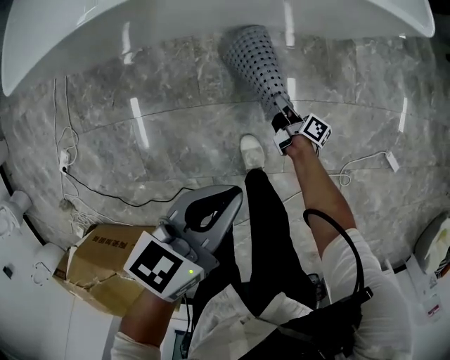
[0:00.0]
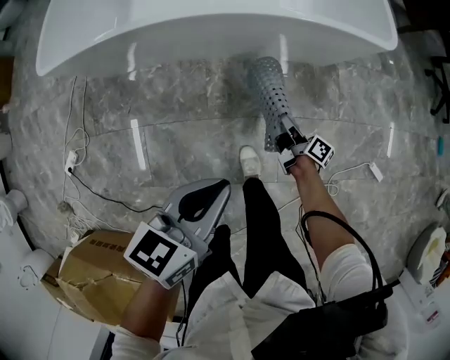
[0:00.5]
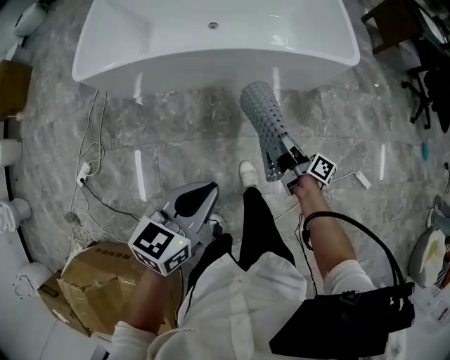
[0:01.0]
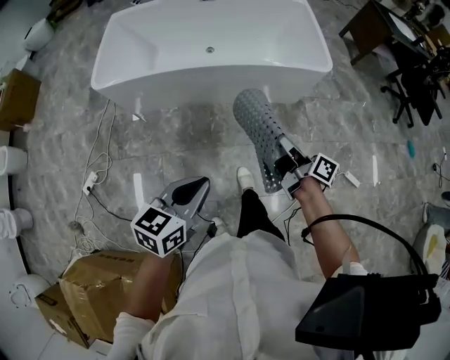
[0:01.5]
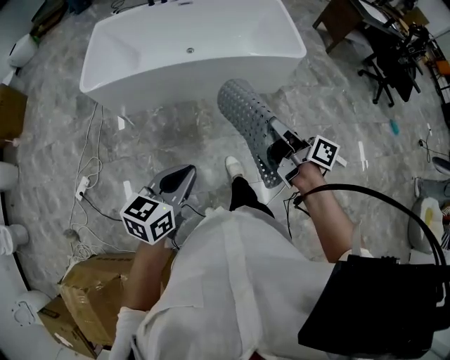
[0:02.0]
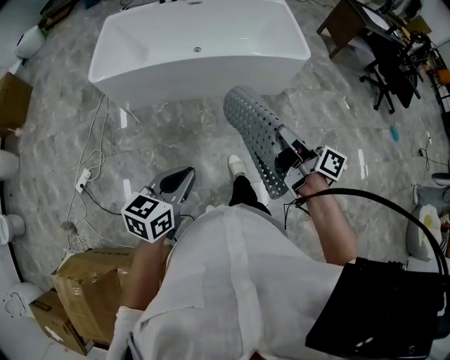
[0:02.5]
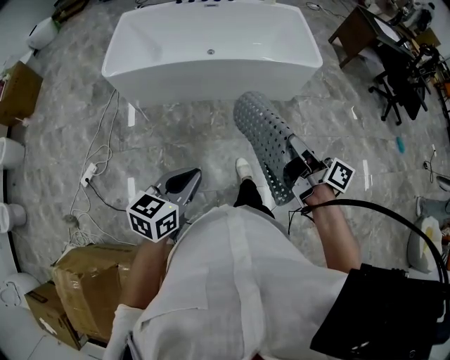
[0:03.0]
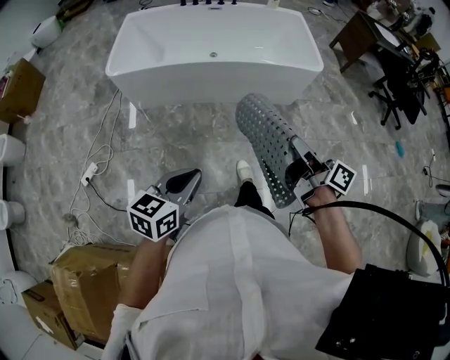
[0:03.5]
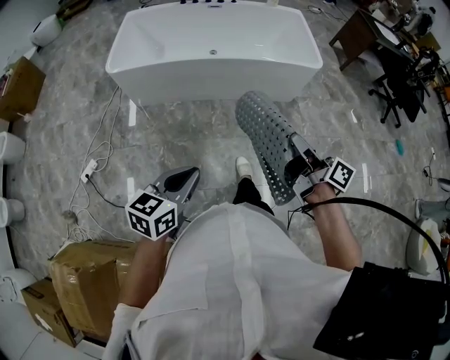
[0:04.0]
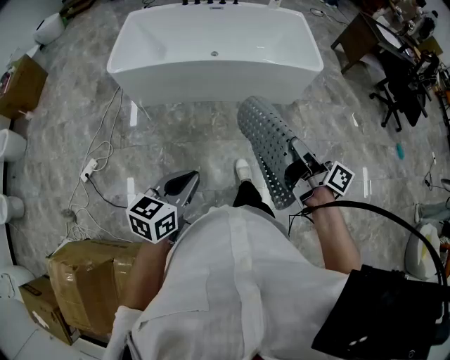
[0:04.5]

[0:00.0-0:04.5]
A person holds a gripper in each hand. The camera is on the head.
0.0 to 2.0 s: The right gripper shifts some 70 cm upward and backward, and changes its angle by approximately 20 degrees, while the left gripper goes approximately 40 cm upward and backward, and rotates approximately 20 degrees.
2.0 to 4.5 s: Both grippers travel together backward, some 5 cm.

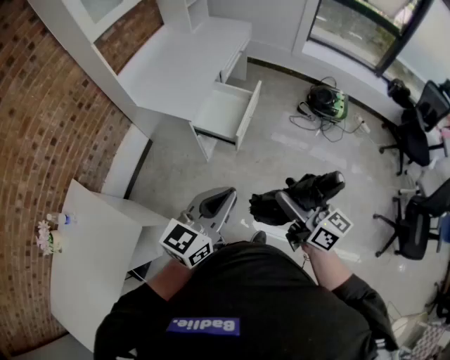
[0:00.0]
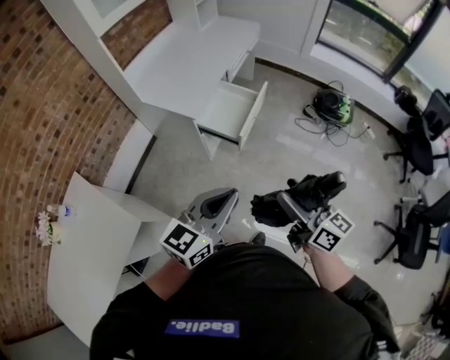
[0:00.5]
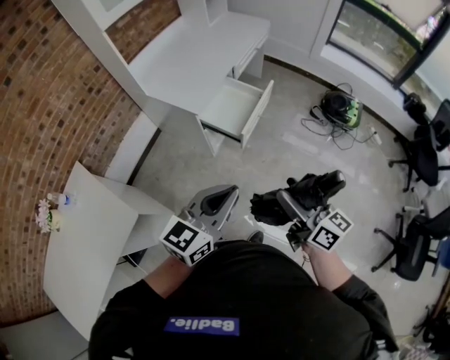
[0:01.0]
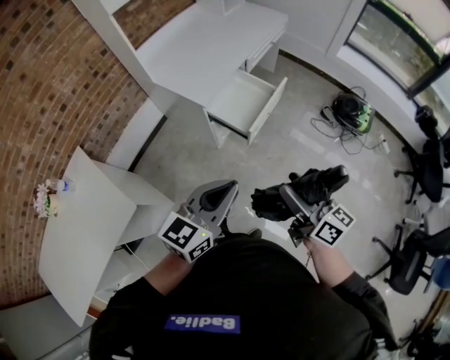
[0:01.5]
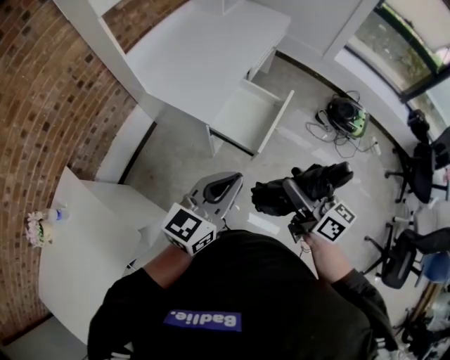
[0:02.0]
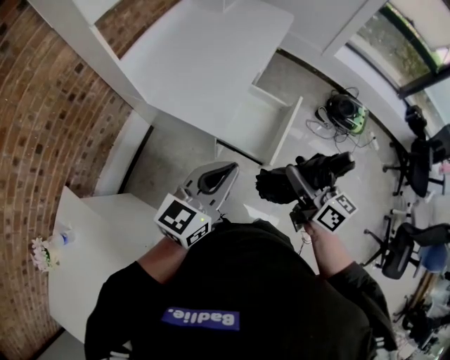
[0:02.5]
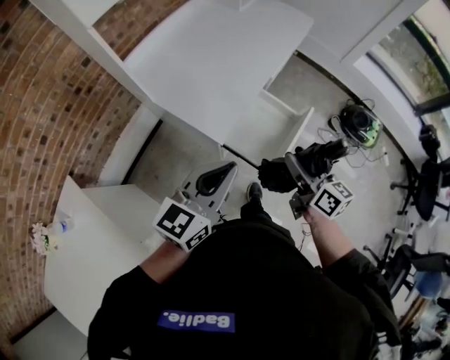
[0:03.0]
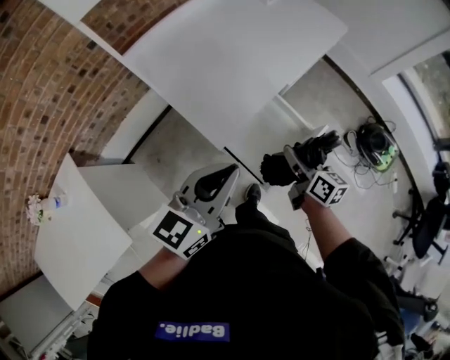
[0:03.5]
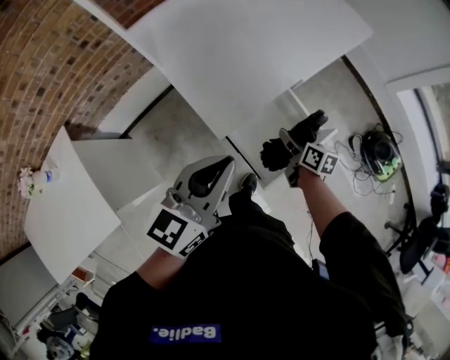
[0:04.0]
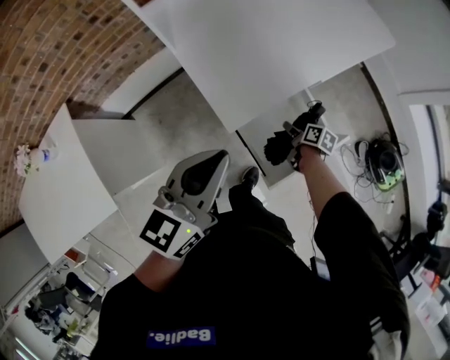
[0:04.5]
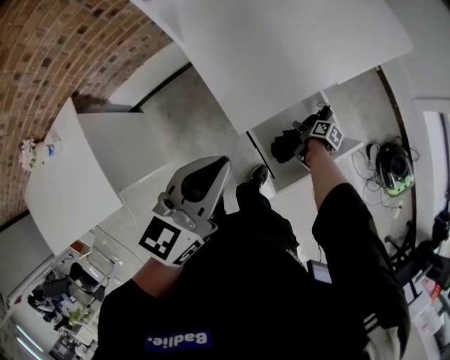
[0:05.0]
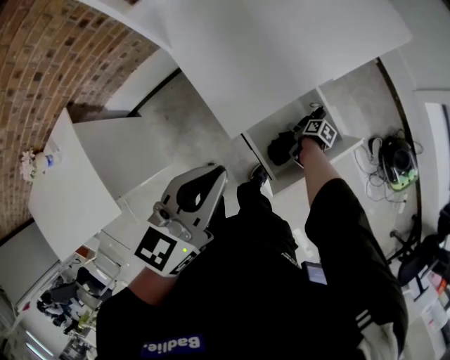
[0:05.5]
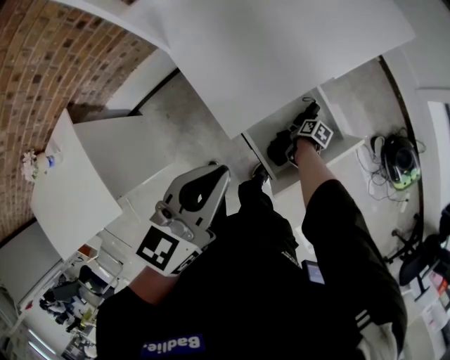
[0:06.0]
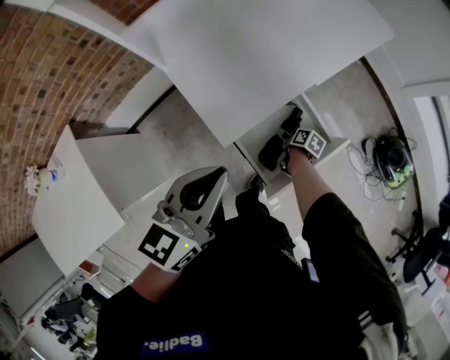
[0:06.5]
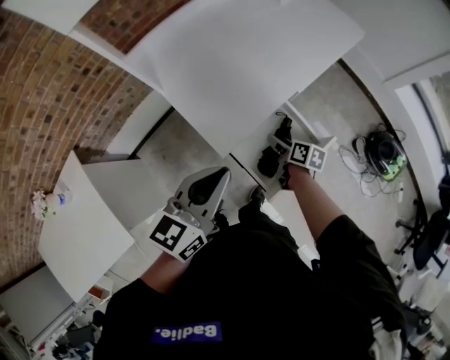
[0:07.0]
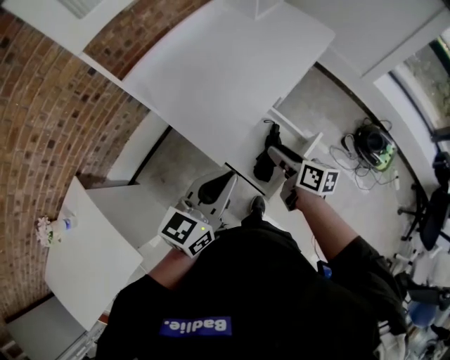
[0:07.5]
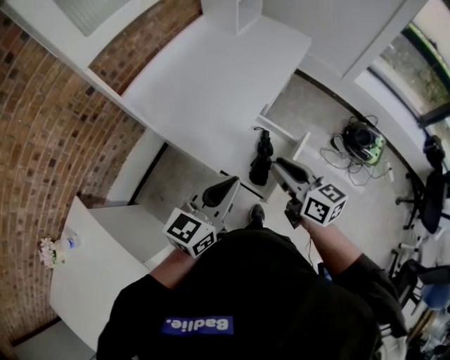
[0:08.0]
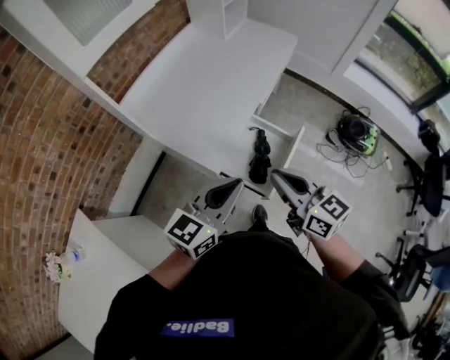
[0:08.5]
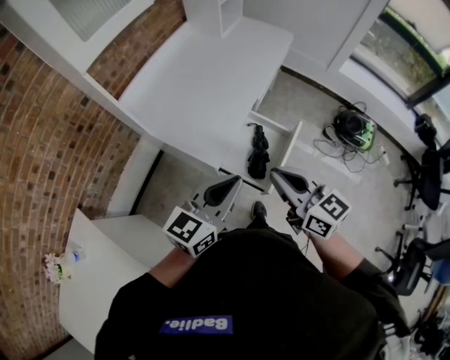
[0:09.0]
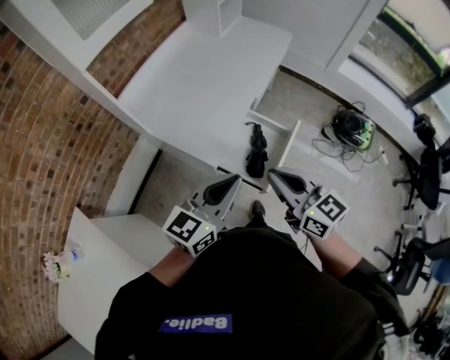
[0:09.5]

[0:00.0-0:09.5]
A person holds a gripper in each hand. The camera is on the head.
0.0 to 2.0 s: The left gripper heads forward and to the left, covering approximately 20 cm. The right gripper travels forward by approximately 20 cm.
2.0 to 4.0 s: The left gripper shifts by some 20 cm, and changes its angle by about 30 degrees; the right gripper shifts by some 40 cm, and points its fingers approximately 30 degrees further downward.
4.0 to 5.5 s: The left gripper shifts by roughly 5 cm; the right gripper is displaced downward by approximately 25 cm, and swivels some 40 degrees.
5.5 to 7.5 s: The right gripper moves upward, approximately 40 cm, and points its fingers some 40 degrees further upward. Meanwhile the left gripper travels upward by approximately 5 cm.
7.5 to 9.5 s: The right gripper shifts some 25 cm upward and backward, changes its angle by roughly 40 degrees, and closes its fingers. Meanwhile the left gripper shifts some 5 cm backward.

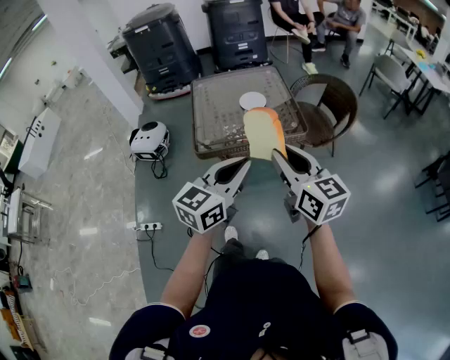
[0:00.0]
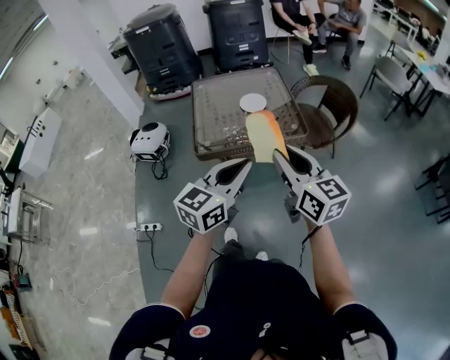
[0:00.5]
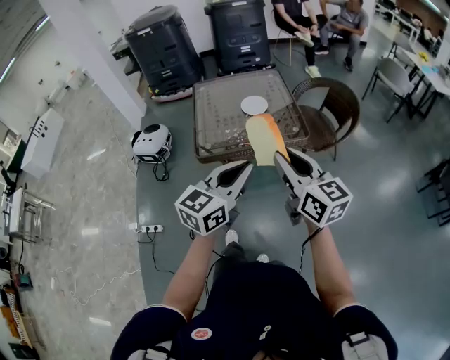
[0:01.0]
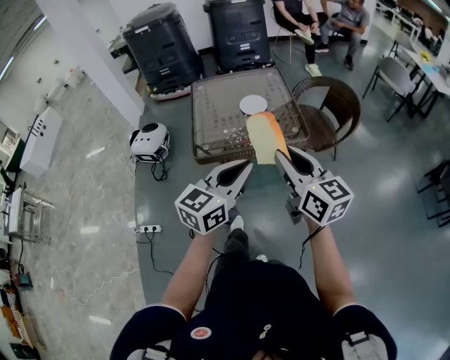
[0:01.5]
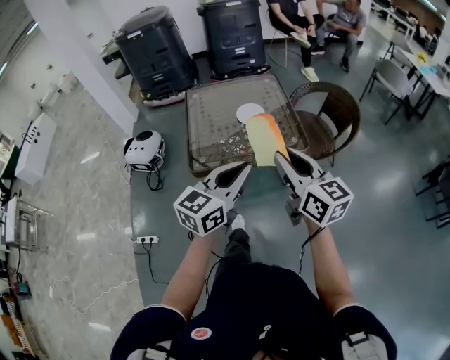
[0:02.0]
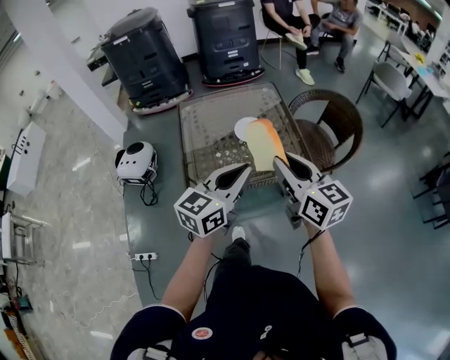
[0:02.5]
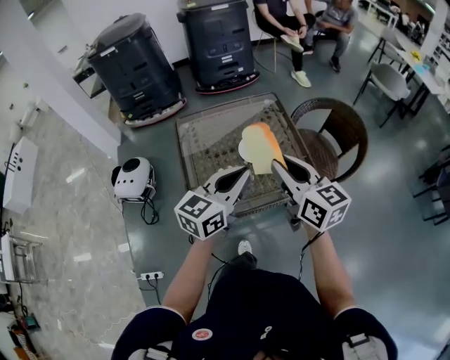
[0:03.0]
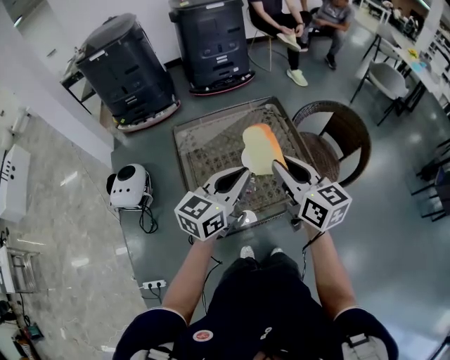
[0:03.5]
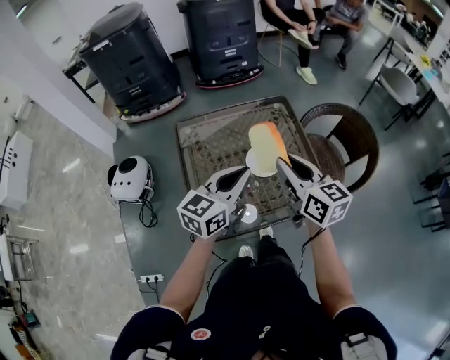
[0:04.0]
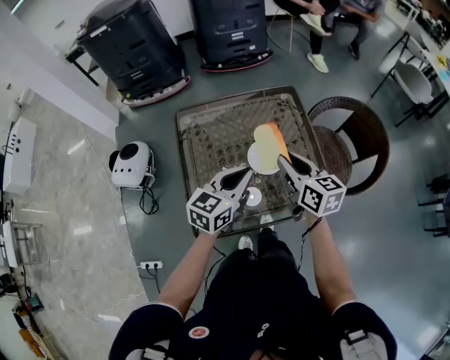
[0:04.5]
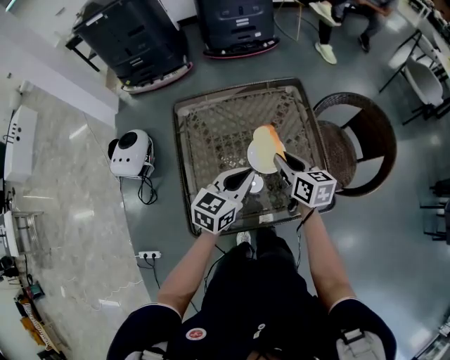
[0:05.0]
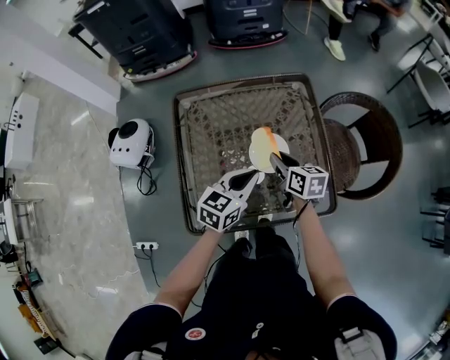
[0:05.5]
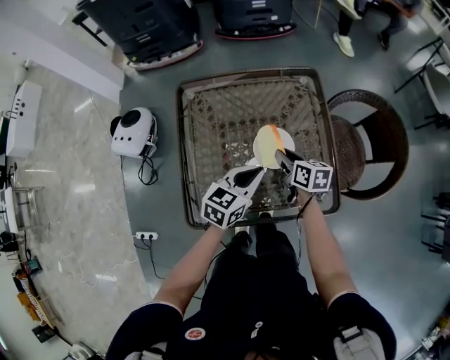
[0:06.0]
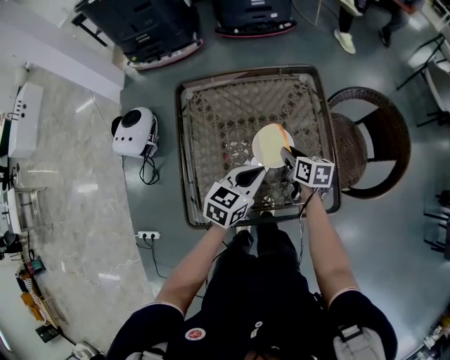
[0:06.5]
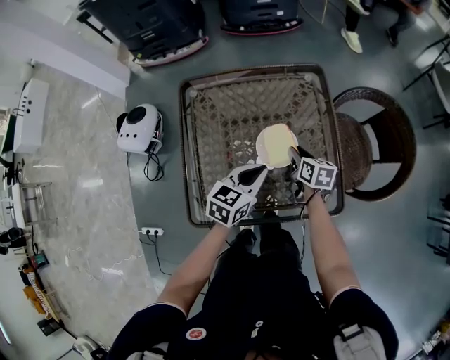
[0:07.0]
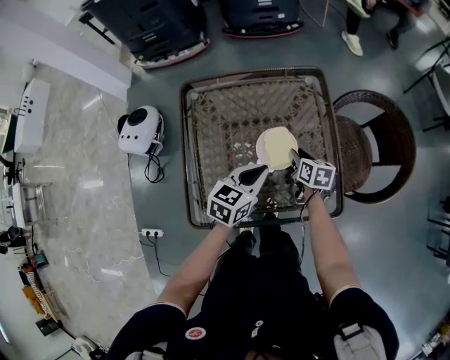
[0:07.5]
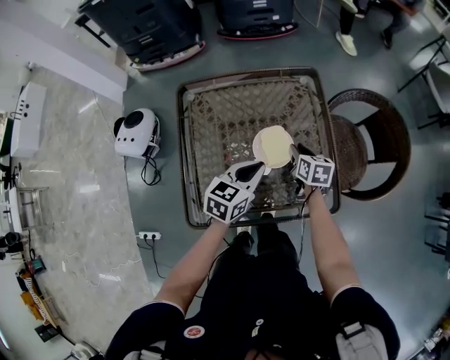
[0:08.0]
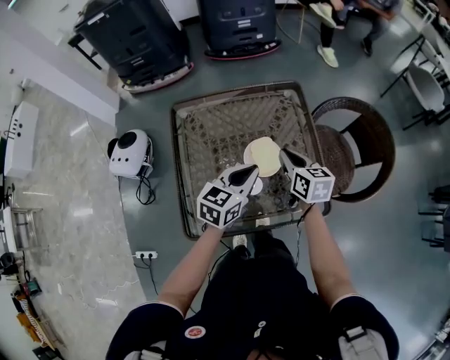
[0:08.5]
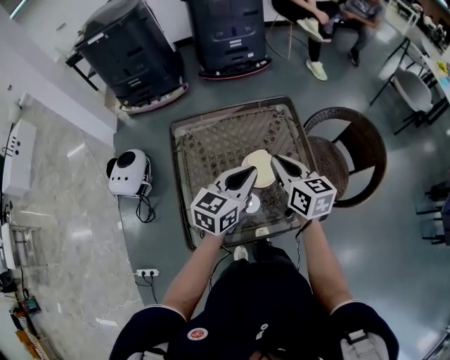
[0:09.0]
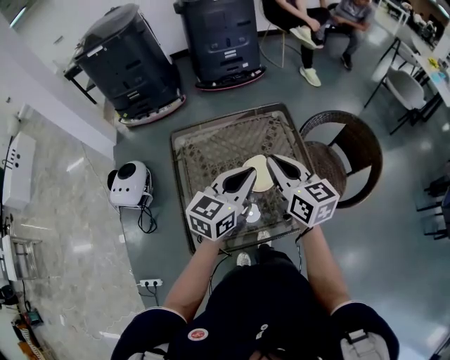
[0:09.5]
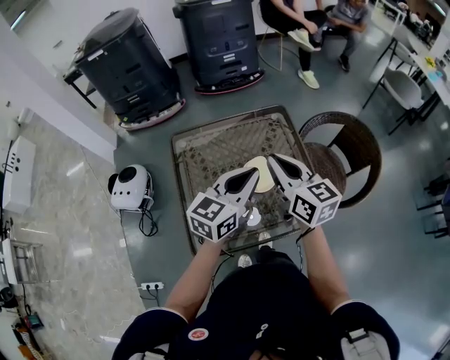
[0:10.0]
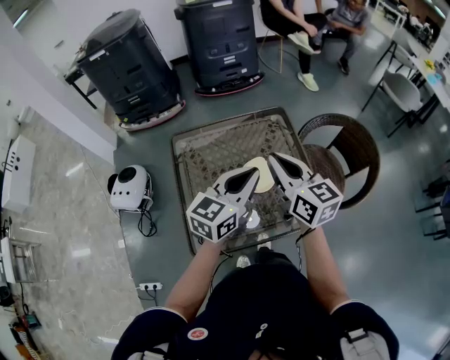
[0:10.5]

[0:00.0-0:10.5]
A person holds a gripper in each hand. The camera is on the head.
0.0 to 2.0 s: Both grippers move forward, some 10 cm.
2.0 to 4.0 s: The two grippers go some 35 cm forward.
4.0 to 6.5 s: The left gripper goes about 20 cm downward, and rotates approximately 20 degrees, while the right gripper moves downward and forward, approximately 30 cm, and turns by roughly 30 degrees.
6.5 to 8.5 s: The right gripper moves upward, about 10 cm. Meanwhile the left gripper goes some 5 cm upward.
8.5 to 10.5 s: Both grippers travel together upward, about 15 cm. The right gripper swivels roughly 20 degrees.

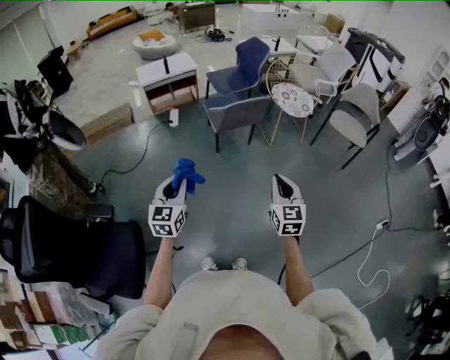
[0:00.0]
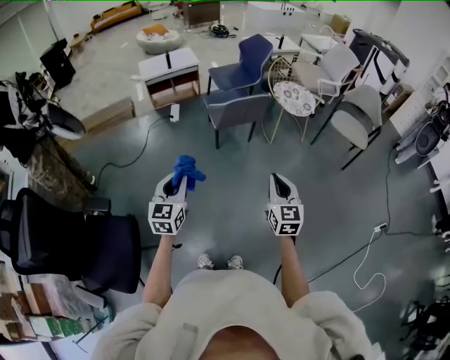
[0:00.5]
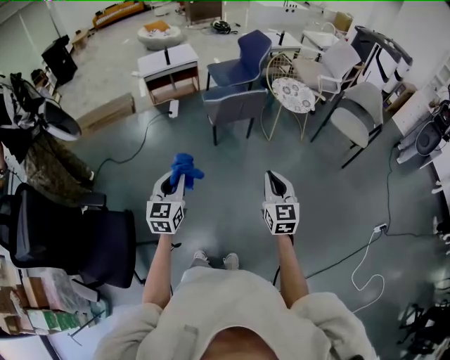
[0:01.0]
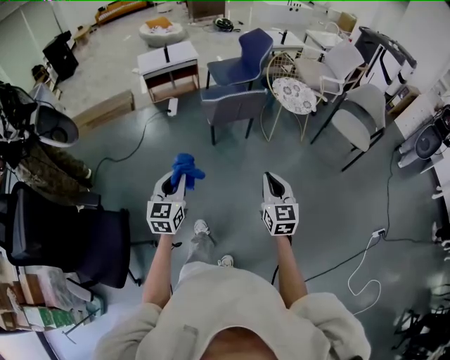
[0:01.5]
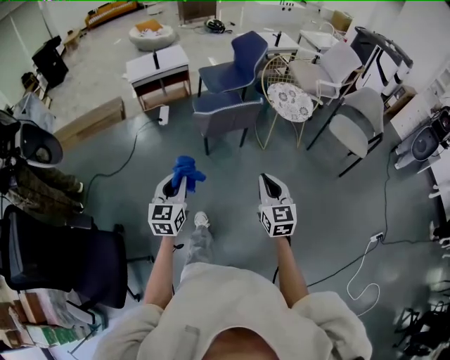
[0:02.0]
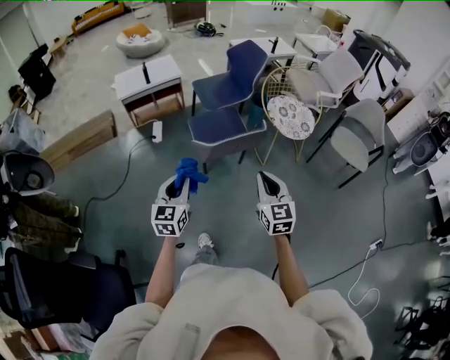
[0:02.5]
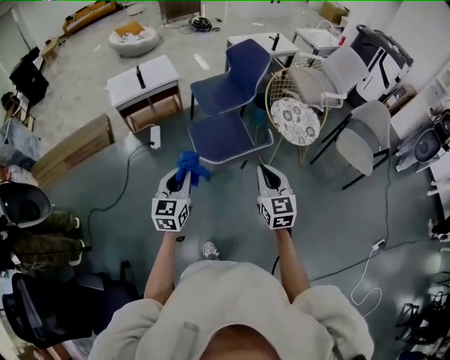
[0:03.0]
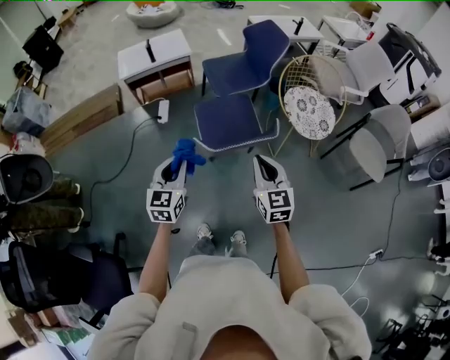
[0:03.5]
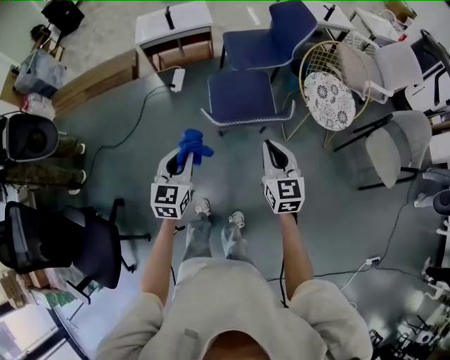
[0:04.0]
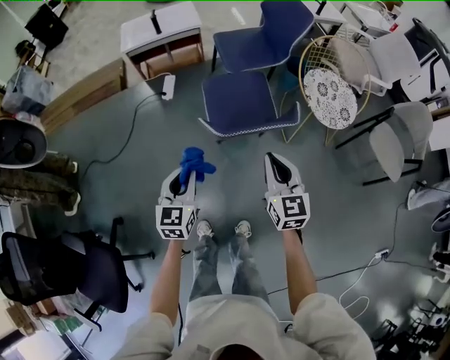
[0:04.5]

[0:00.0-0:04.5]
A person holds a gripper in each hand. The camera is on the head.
0.0 to 2.0 s: The right gripper is displaced forward by approximately 15 cm. Meanwhile the left gripper goes about 15 cm forward and to the right.
2.0 to 4.5 s: The right gripper is displaced forward by approximately 40 cm; the left gripper heads forward and downward, covering roughly 35 cm.
